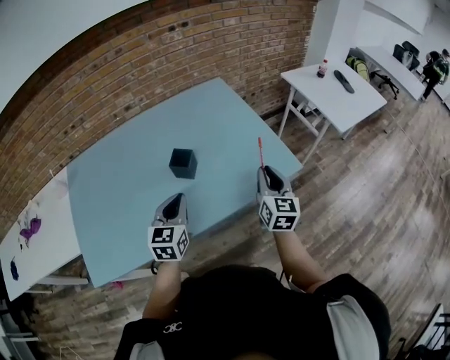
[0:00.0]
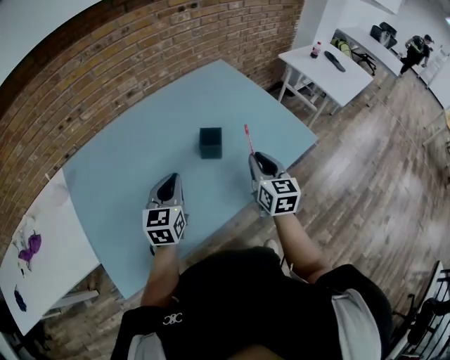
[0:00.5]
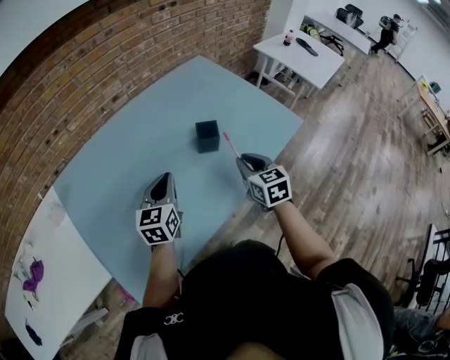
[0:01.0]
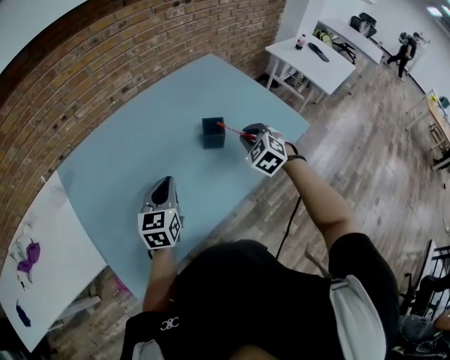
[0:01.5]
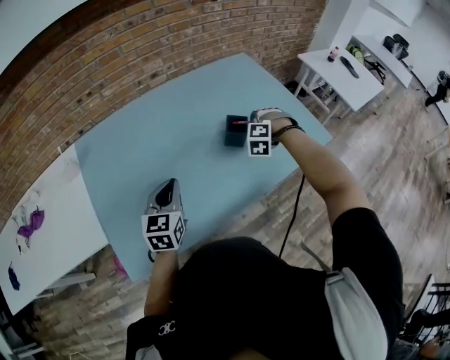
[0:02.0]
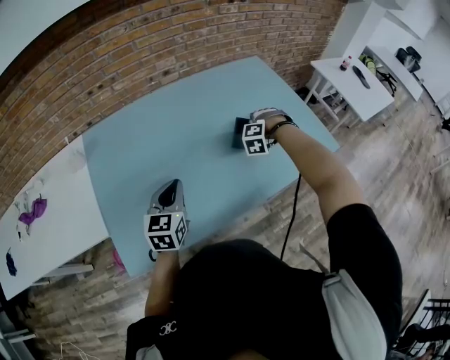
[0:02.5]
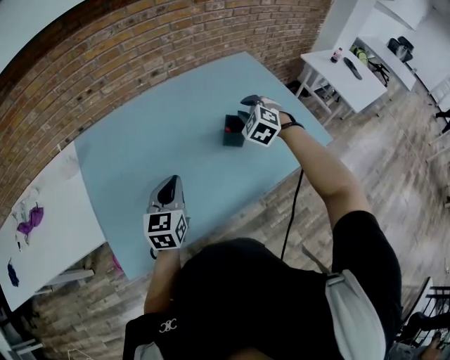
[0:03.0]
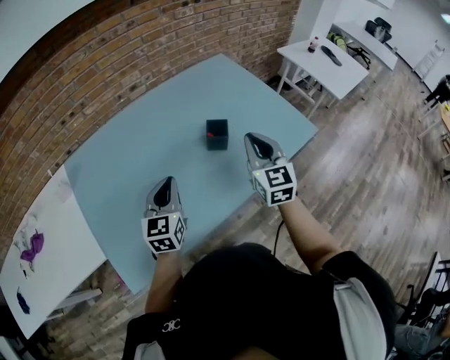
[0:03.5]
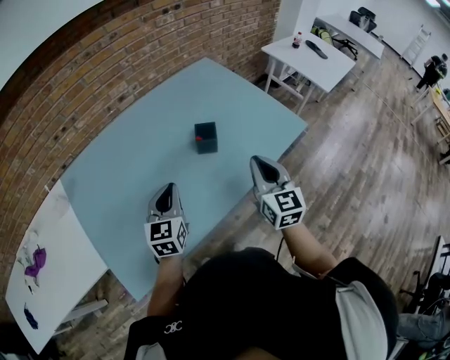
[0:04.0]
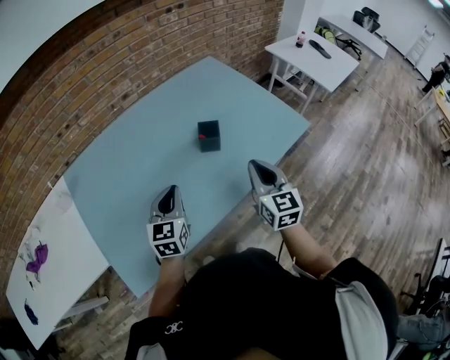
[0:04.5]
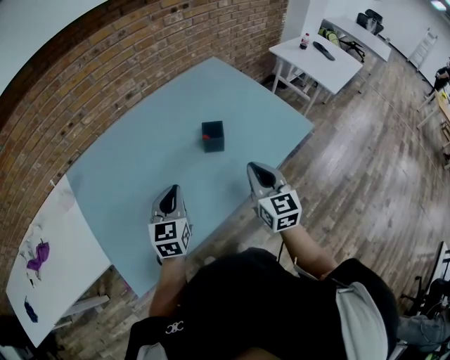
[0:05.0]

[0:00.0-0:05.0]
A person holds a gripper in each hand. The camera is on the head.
0:00.0 to 0:02.5: The two grippers go roughly 25 cm to the left. The right gripper twists roughly 100 degrees counterclockwise, seen from behind.
0:02.5 to 0:05.0: The left gripper travels to the right by some 5 cm, while the right gripper moves backward and upward, approximately 25 cm, and twists approximately 90 degrees clockwise, seen from behind.

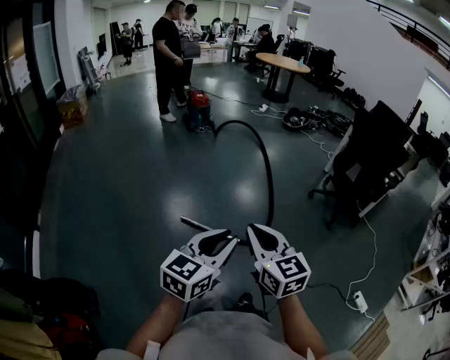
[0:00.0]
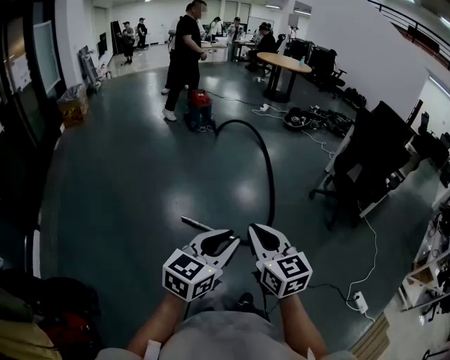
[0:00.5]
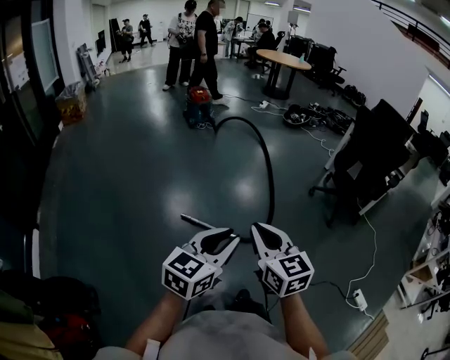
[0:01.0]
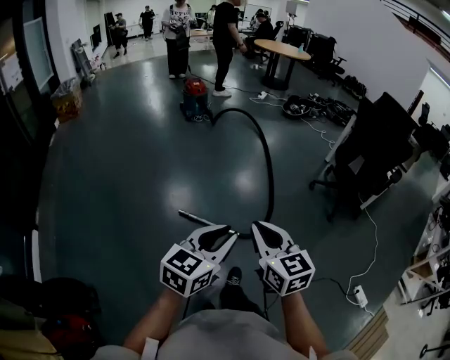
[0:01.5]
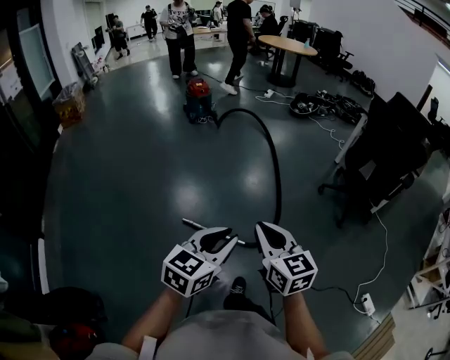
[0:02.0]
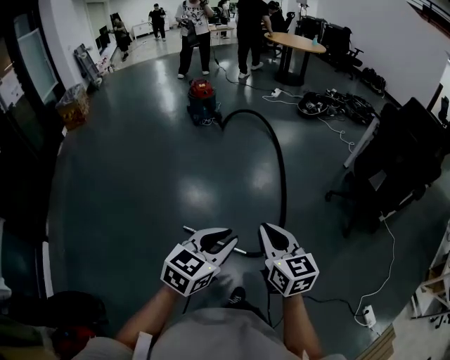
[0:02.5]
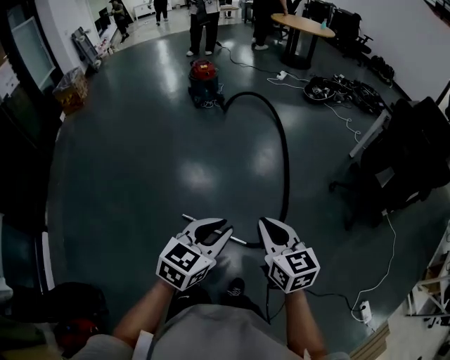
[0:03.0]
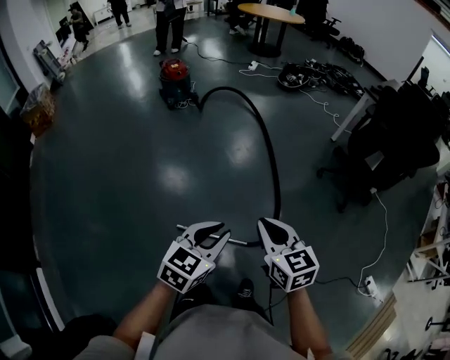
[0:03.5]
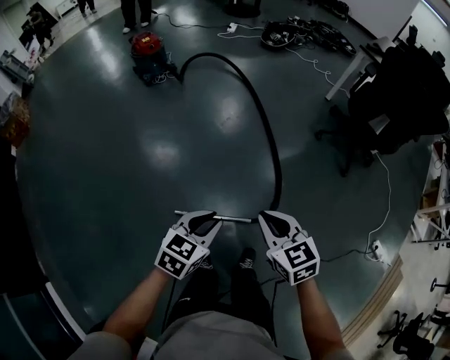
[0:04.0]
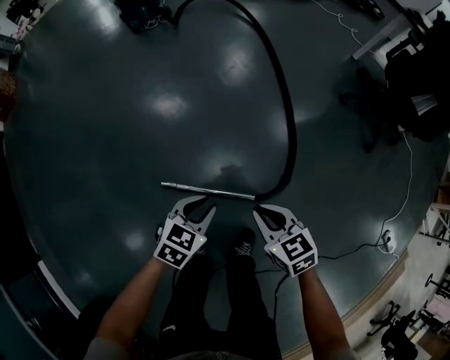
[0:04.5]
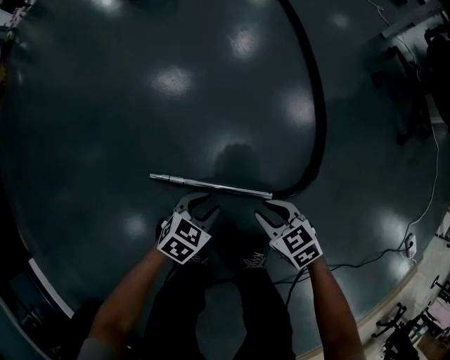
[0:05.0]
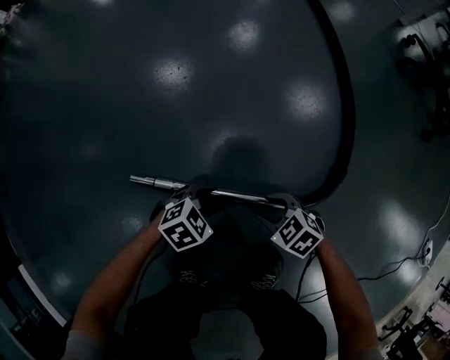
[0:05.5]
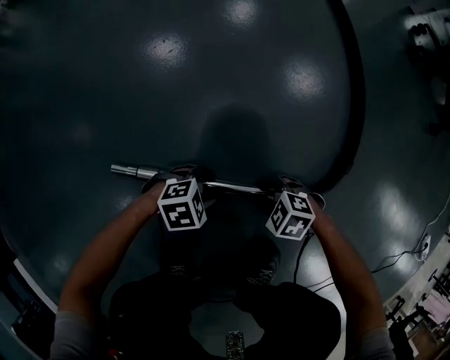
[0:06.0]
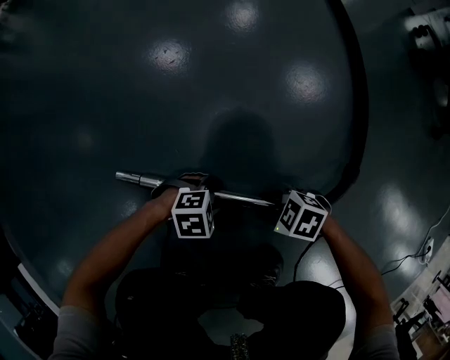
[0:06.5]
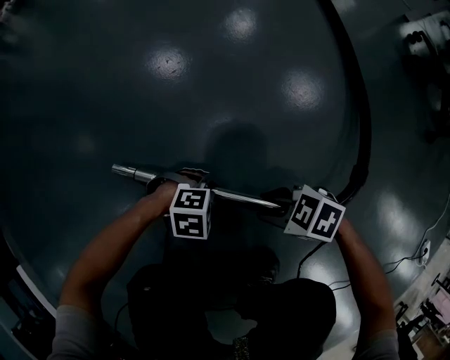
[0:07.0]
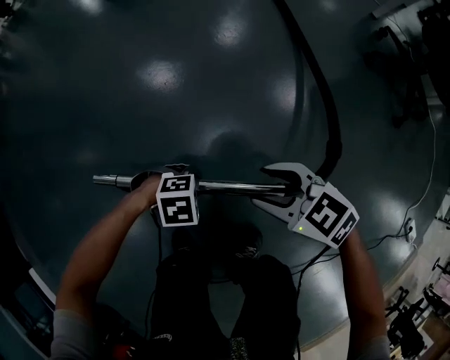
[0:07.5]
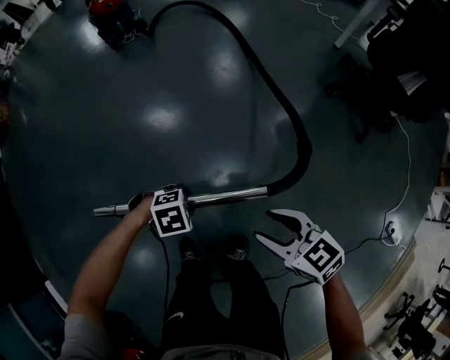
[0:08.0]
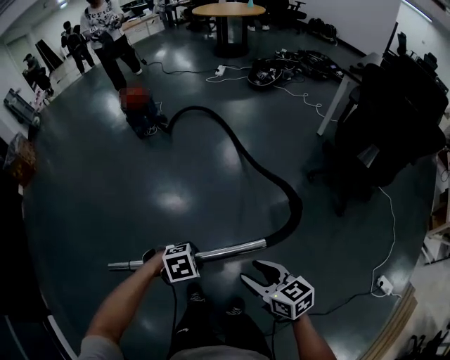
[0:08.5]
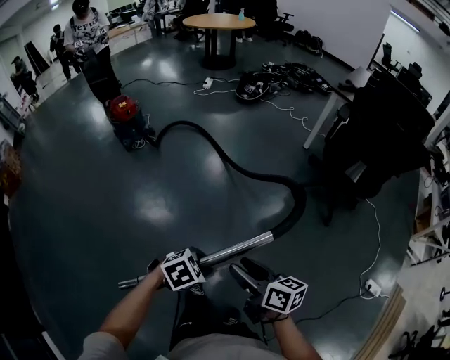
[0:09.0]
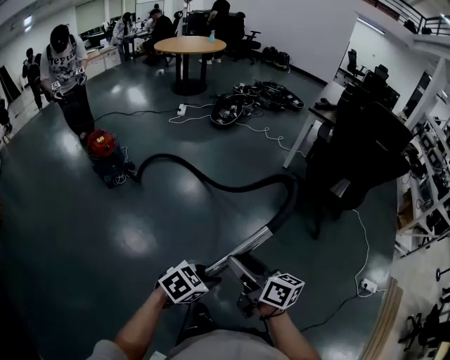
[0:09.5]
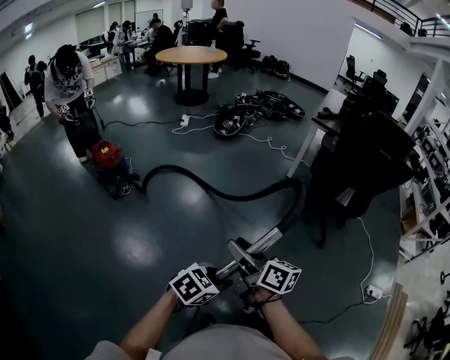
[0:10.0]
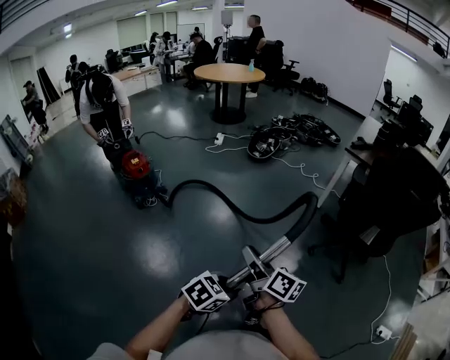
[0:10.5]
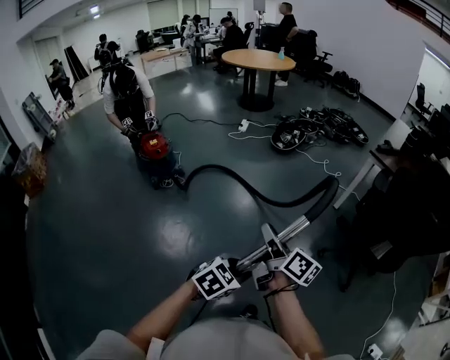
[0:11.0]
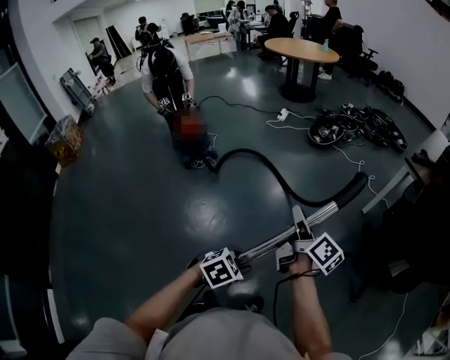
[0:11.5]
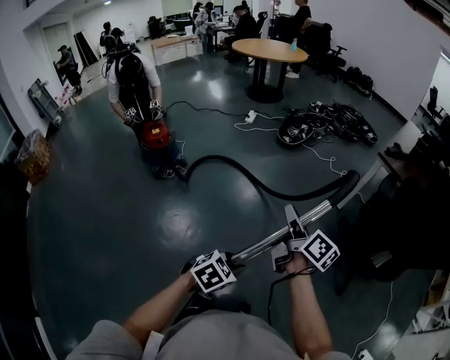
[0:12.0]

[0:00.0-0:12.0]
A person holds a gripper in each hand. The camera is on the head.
0:00.0 to 0:02.0: The two grippers go some 15 cm forward.
0:02.0 to 0:04.0: The right gripper moves forward and downward, roughly 30 cm, and swivels some 20 degrees. The left gripper travels forward, downward and to the left by some 35 cm, and rotates about 20 degrees.
0:04.0 to 0:06.0: Both grippers move downward, about 90 cm. The left gripper changes its angle by roughly 50 degrees, and opens its fingers, while the right gripper angles its fingers downward, by some 30 degrees, and opens its fingers.
0:06.0 to 0:08.0: The grippers both shift upward by some 60 cm. The right gripper tips its fingers upward by about 30 degrees.
0:08.0 to 0:10.0: The grippers both shift upward by some 40 cm. The right gripper turns by some 60 degrees; the left gripper tips its fingers upward by roughly 30 degrees.
0:10.0 to 0:12.0: Both grippers travel together forward, roughly 25 cm. The right gripper closes. The left gripper rotates about 20 degrees.

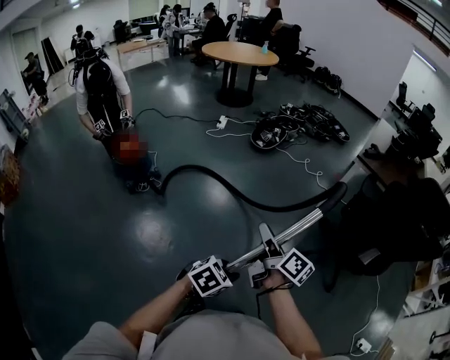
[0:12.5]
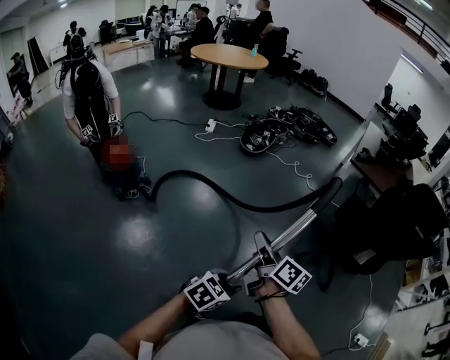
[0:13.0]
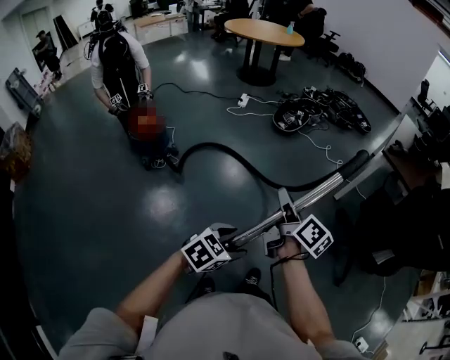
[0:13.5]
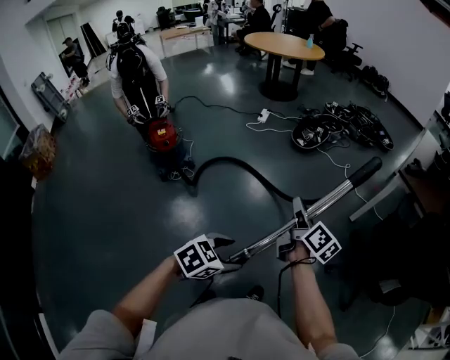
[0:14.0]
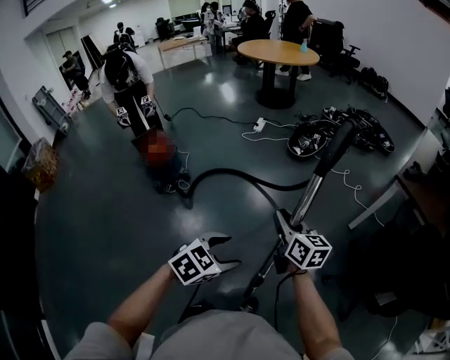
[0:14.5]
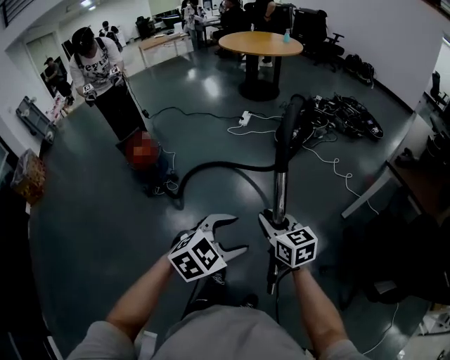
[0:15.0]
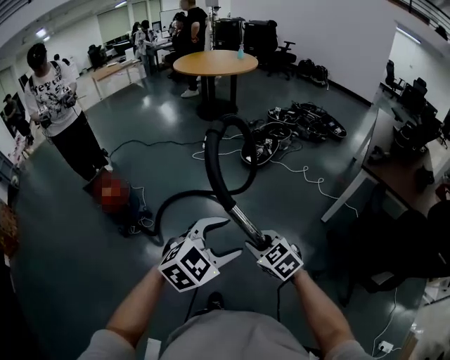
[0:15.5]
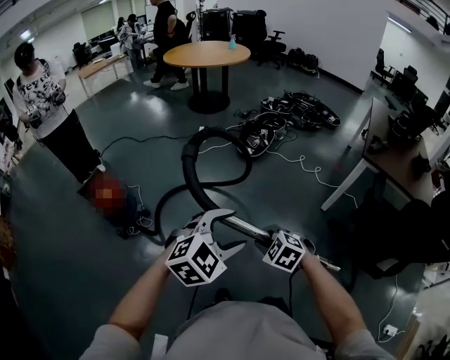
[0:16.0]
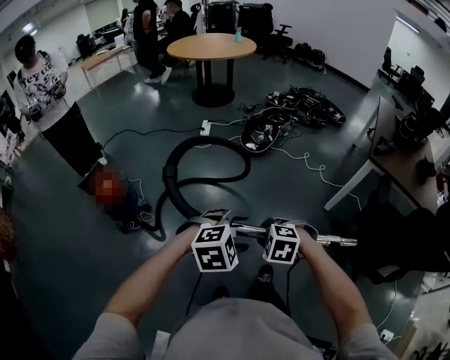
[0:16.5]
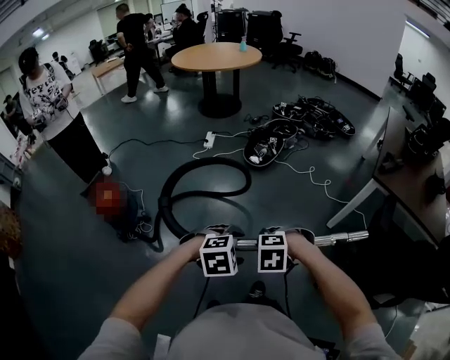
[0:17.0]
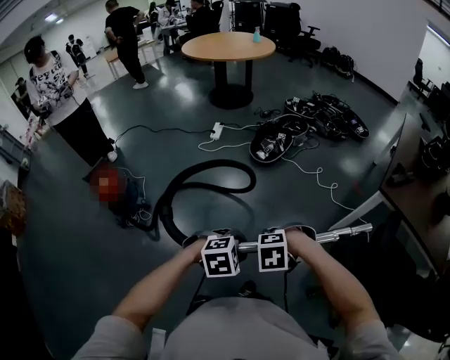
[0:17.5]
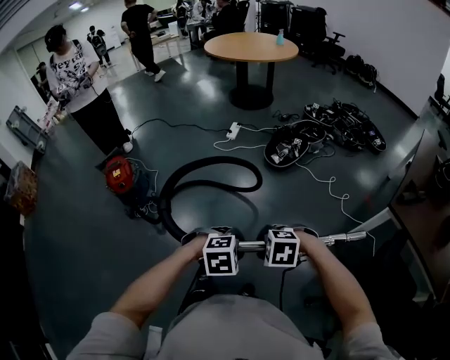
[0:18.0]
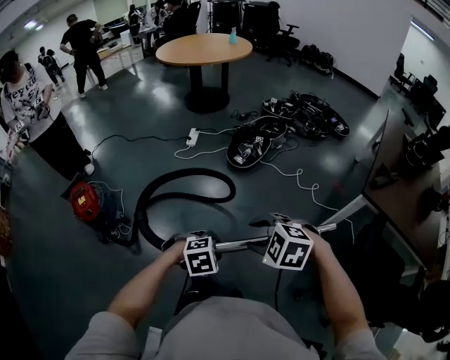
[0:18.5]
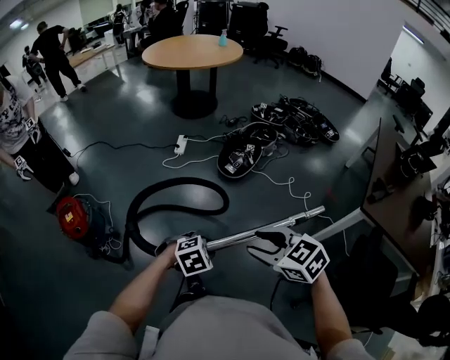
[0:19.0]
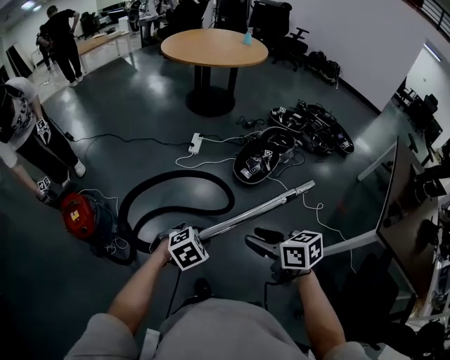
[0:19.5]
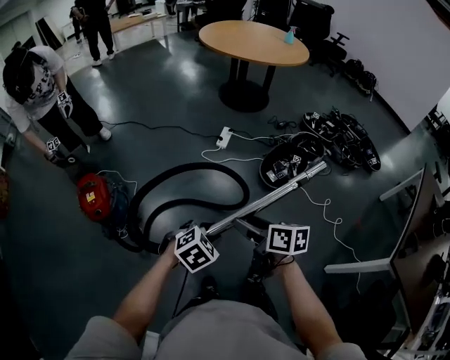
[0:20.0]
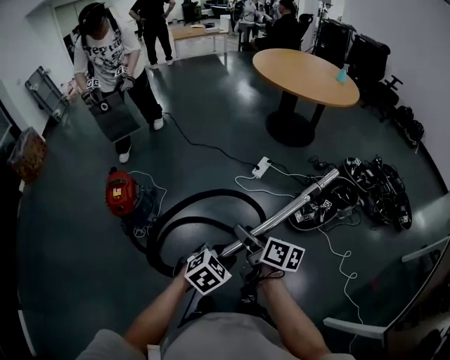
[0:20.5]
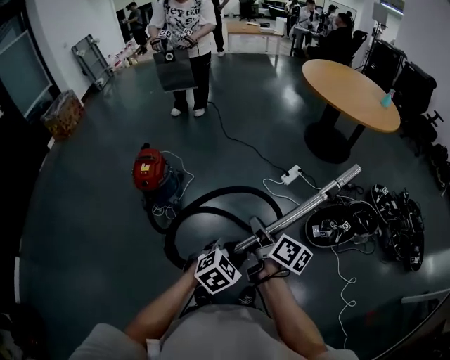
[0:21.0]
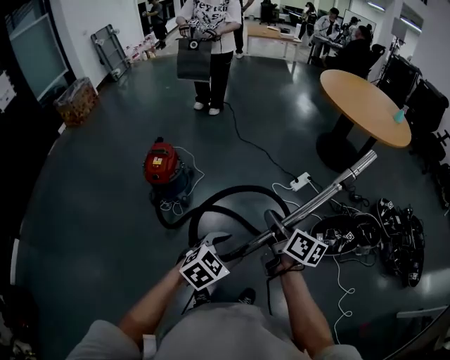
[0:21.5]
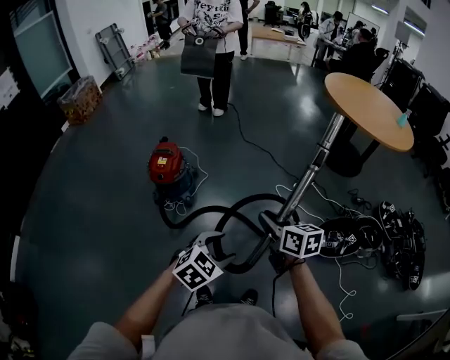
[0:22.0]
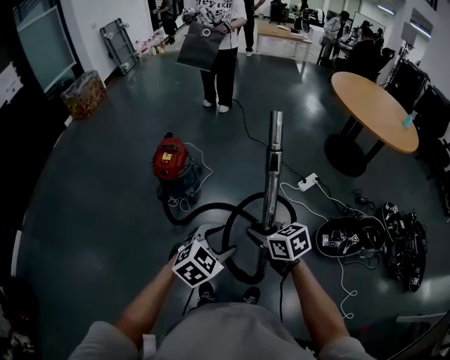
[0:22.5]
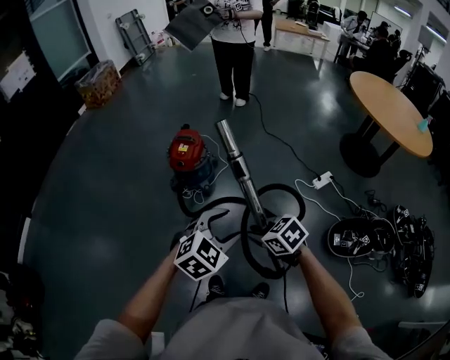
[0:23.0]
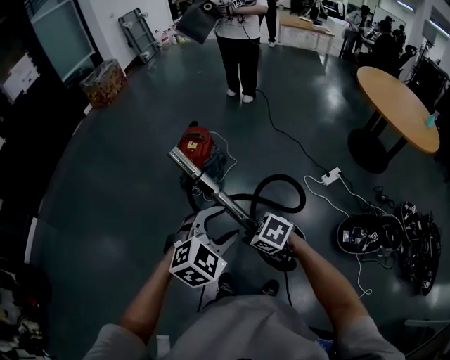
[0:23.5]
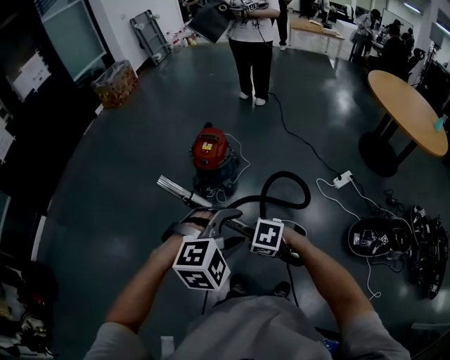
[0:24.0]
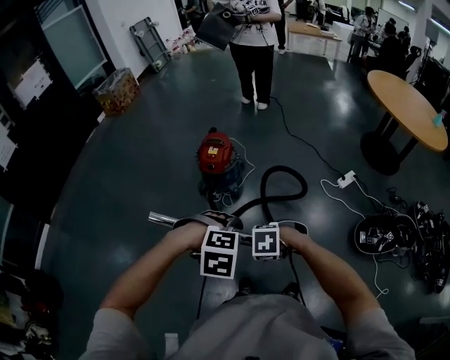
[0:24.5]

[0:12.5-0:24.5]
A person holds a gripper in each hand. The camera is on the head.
0:12.5 to 0:14.5: The two grippers go about 20 cm forward. The left gripper opens up; the right gripper changes its angle by approximately 40 degrees.
0:14.5 to 0:16.5: The right gripper goes approximately 15 cm to the left, downward and forward, and points its fingers some 60 degrees further downward. The left gripper goes about 20 cm forward, and rotates around the line of its fingers by approximately 40 degrees, clockwise from behind.
0:16.5 to 0:18.5: The right gripper ends up approximately 25 cm from where it was, and opens its fingers, while the left gripper shifts by some 25 cm, rotates approximately 20 degrees, and closes.
0:18.5 to 0:20.5: The right gripper ends up approximately 50 cm from where it was, and rolls clockwise, seen from behind, by roughly 80 degrees. The left gripper ends up some 40 cm from where it was, and twists roughly 50 degrees counterclockwise, seen from behind.
0:20.5 to 0:22.5: The left gripper moves roughly 15 cm, changes its angle by roughly 20 degrees, and opens its fingers, while the right gripper moves approximately 10 cm, turns by roughly 60 degrees, and closes up.
0:22.5 to 0:24.5: The left gripper goes upward and returns, roughly 10 cm each way, and points its fingers some 30 degrees further downward; the right gripper moves some 25 cm, and tips its fingers downward by roughly 40 degrees.
